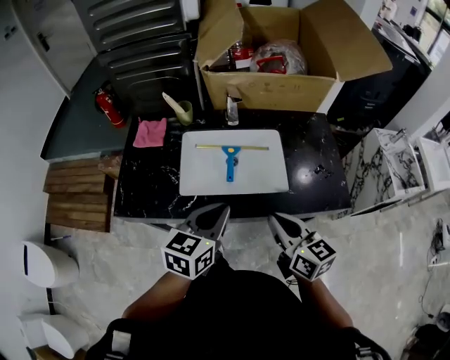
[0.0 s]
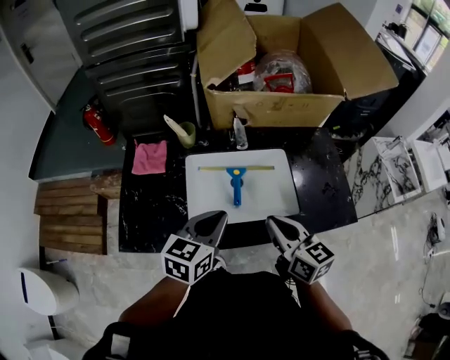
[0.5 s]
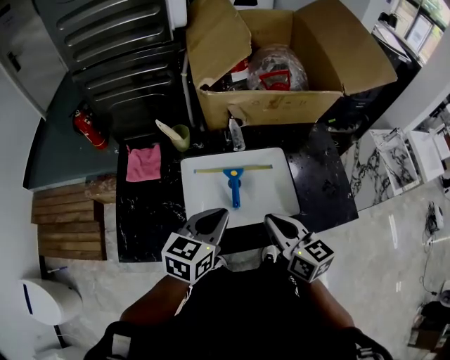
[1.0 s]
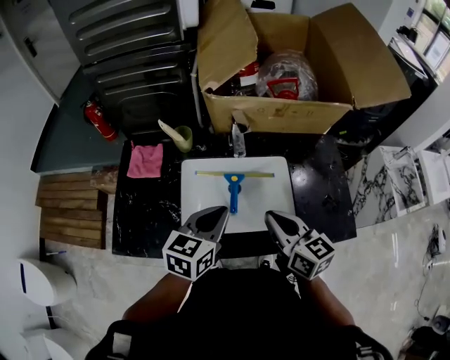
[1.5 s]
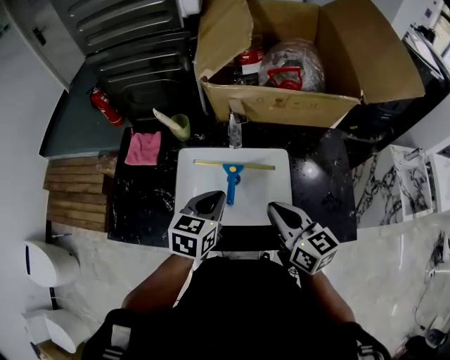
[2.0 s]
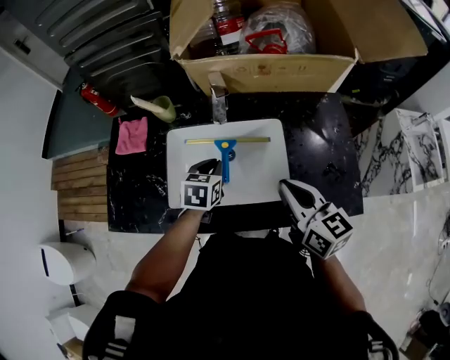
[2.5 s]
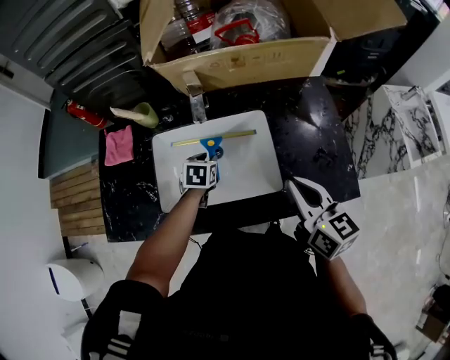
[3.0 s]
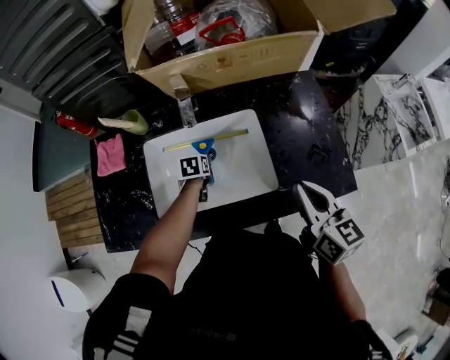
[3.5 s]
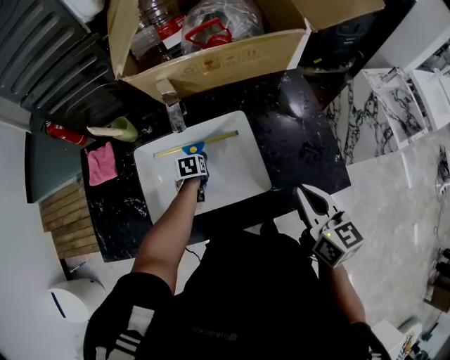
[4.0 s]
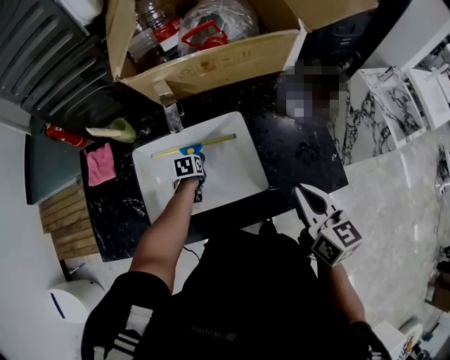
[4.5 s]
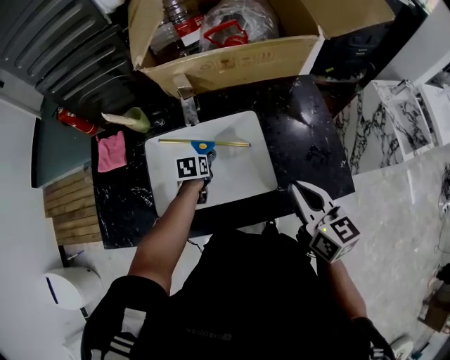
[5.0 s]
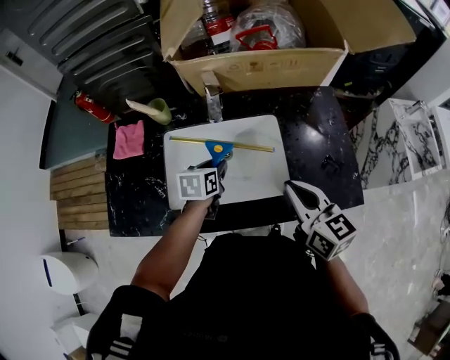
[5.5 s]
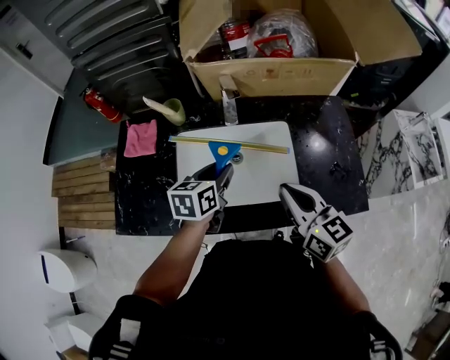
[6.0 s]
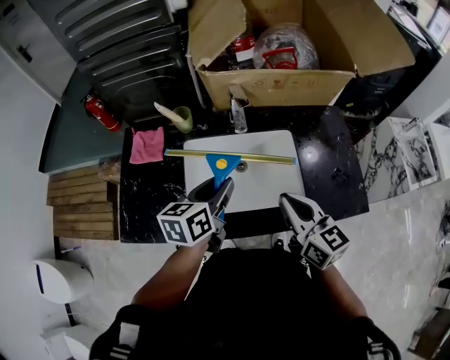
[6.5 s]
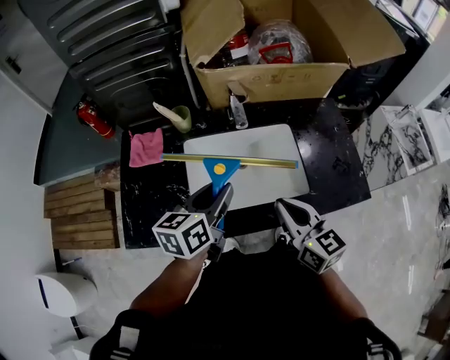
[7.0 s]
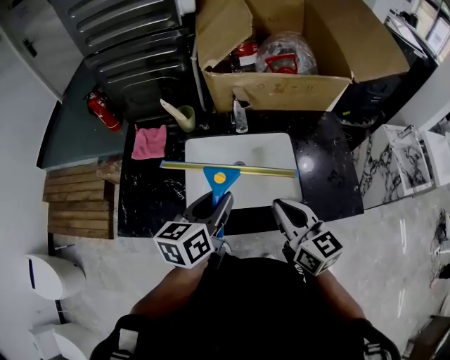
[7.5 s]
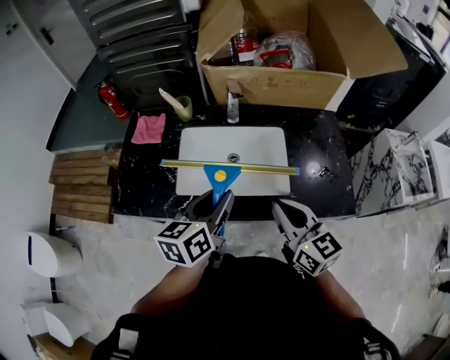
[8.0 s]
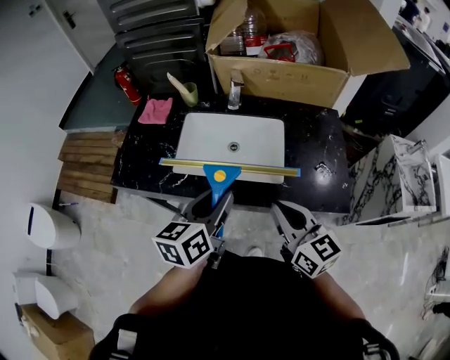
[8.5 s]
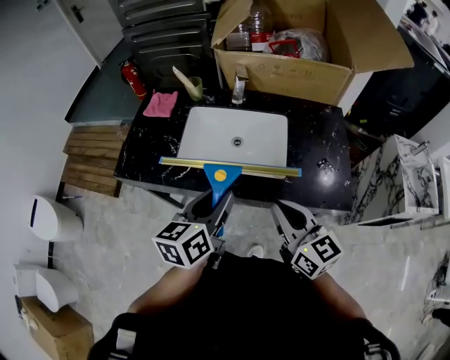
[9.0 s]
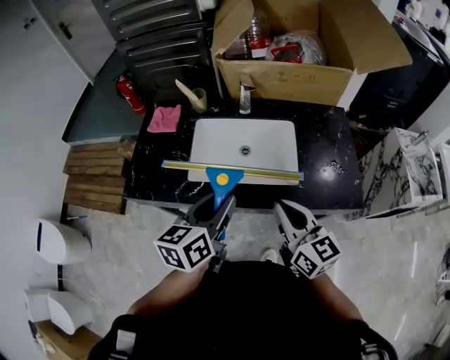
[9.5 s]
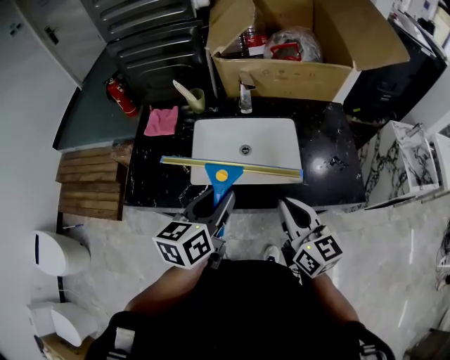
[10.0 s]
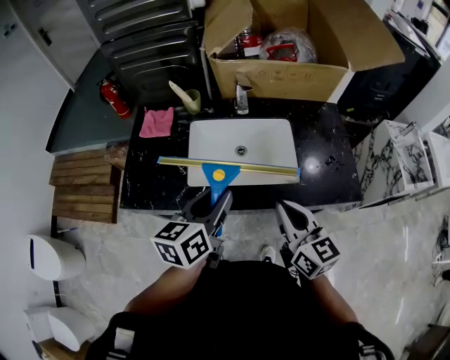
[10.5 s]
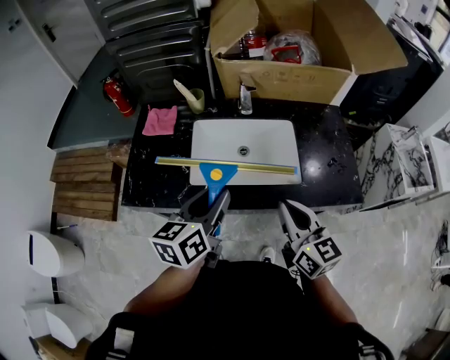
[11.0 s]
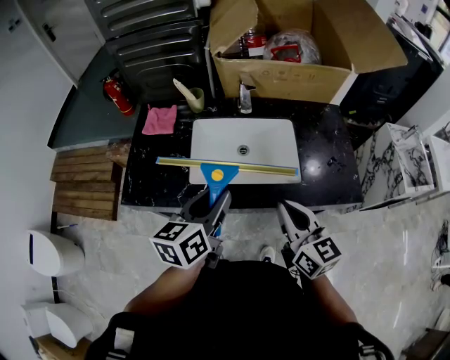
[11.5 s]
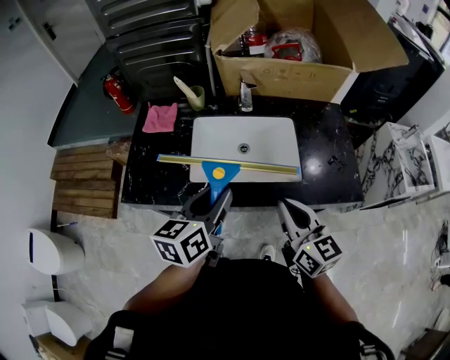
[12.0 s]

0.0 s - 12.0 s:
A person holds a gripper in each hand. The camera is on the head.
0.0 s - 2.0 s: The two grippers go some 15 cm forward.
2.0 s - 4.0 s: The right gripper is displaced to the right by some 15 cm, and changes its angle by approximately 20 degrees. The left gripper heads downward and forward, covering some 30 cm, points its fingers about 30 degrees further downward, and opens its fingers.
4.0 s - 6.0 s: The right gripper goes approximately 15 cm to the left, and changes its angle by roughly 20 degrees; the left gripper heads upward, covering roughly 25 cm, and tilts its fingers about 30 degrees upward.
6.0 s - 8.0 s: The right gripper goes approximately 10 cm backward. Meanwhile the left gripper is displaced backward and upward by approximately 15 cm.
10.0 s - 12.0 s: The grippers stay close to where they were, moving slightly.

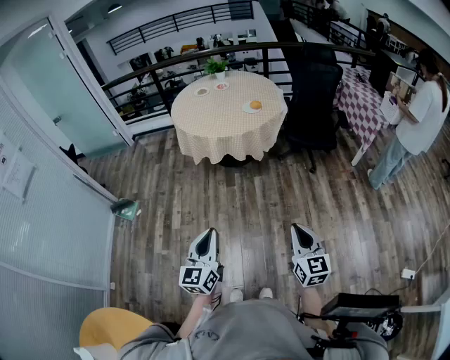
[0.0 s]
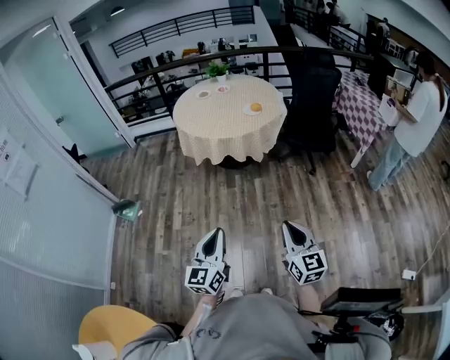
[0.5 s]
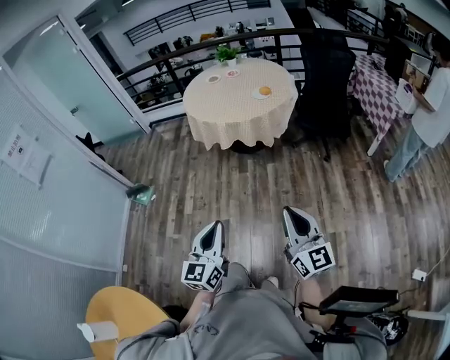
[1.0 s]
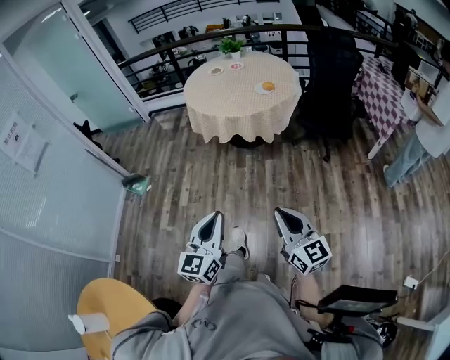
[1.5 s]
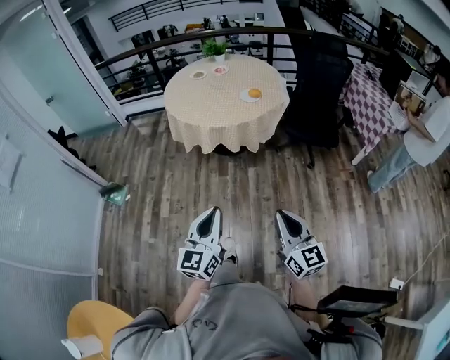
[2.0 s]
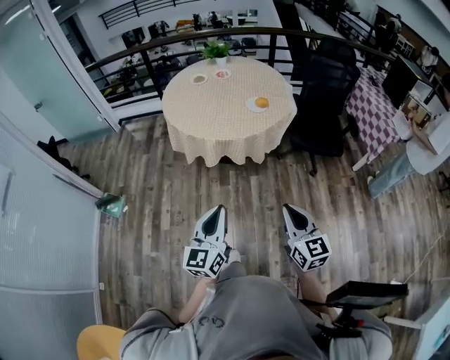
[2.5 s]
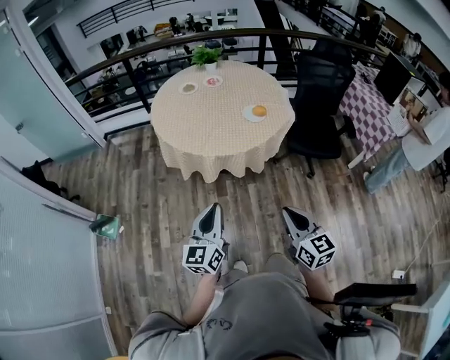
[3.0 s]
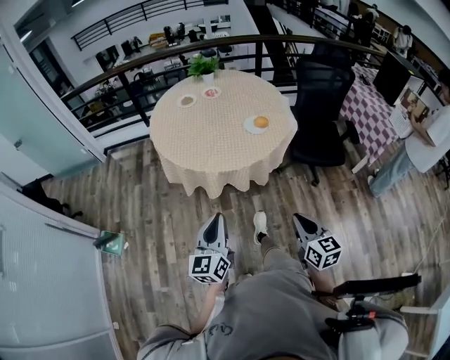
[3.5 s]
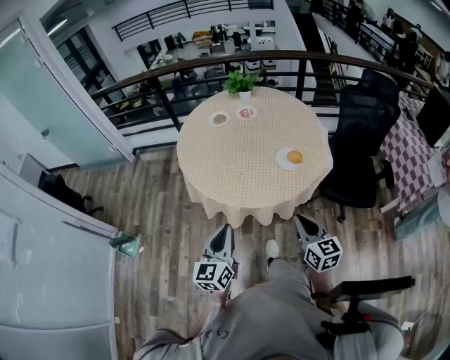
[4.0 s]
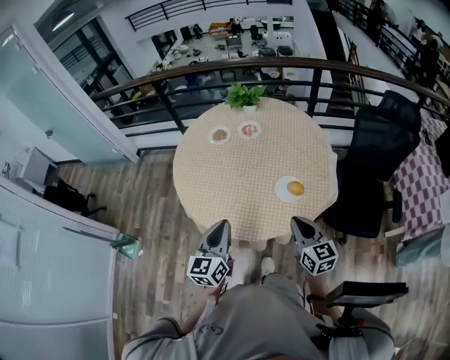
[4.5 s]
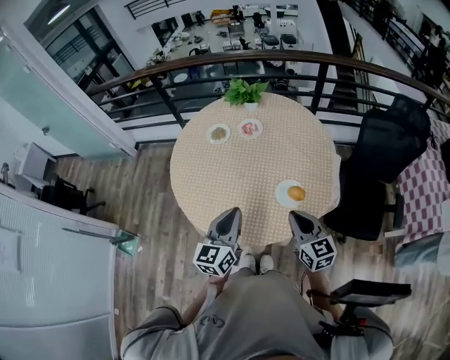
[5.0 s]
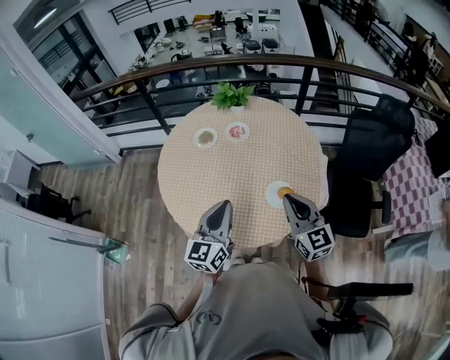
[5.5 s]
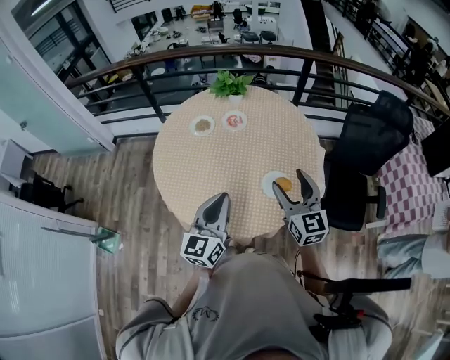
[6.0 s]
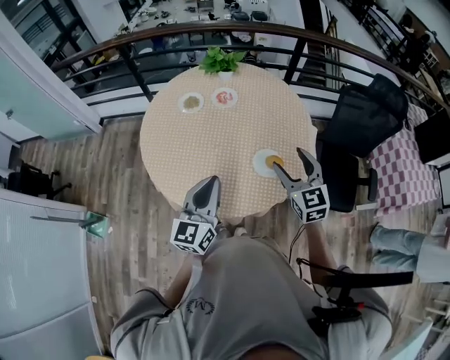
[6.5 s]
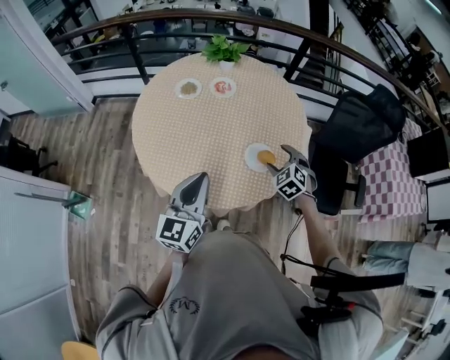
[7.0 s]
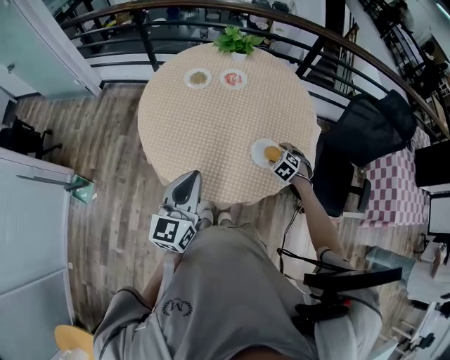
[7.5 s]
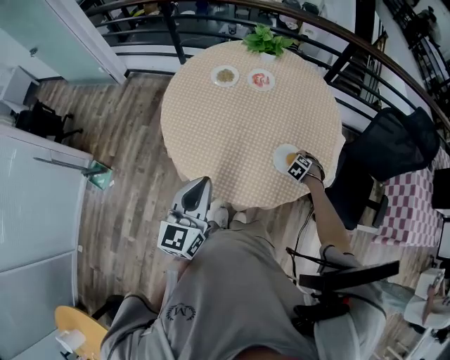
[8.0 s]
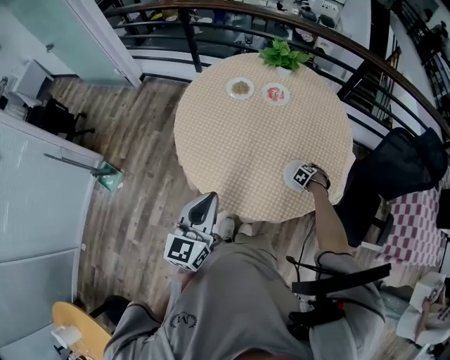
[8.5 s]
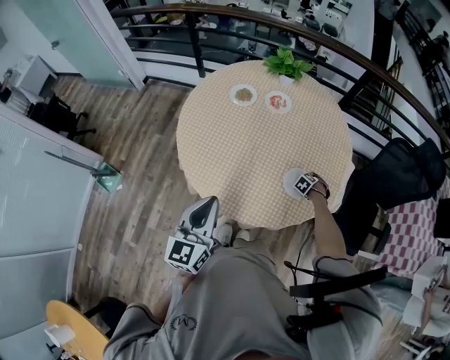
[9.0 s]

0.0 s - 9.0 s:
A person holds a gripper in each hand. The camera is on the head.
0.0 s - 2.0 s: The left gripper travels forward and to the right by approximately 10 cm. Meanwhile the right gripper heads forward, covering roughly 10 cm.
2.0 s - 4.5 s: The two grippers travel together, forward, some 70 cm.
4.5 s - 7.0 s: The left gripper is displaced forward by approximately 5 cm, while the right gripper travels forward and downward by approximately 20 cm, angles its fingers downward, by about 40 degrees, and opens its fingers.
7.0 s - 9.0 s: The left gripper ends up about 5 cm from where it was. Meanwhile the right gripper moves downward, some 30 cm, and tips its fingers downward by some 40 degrees.

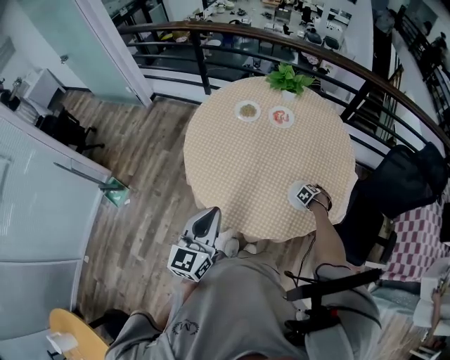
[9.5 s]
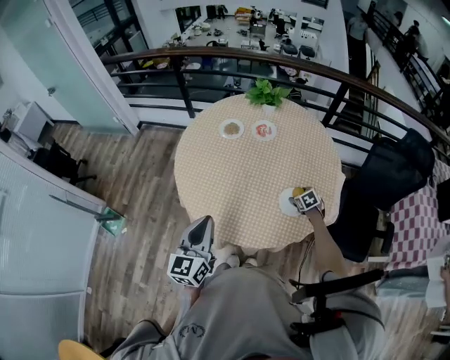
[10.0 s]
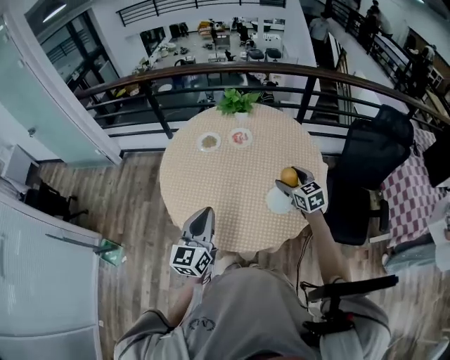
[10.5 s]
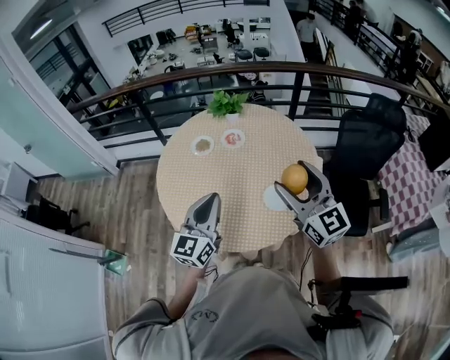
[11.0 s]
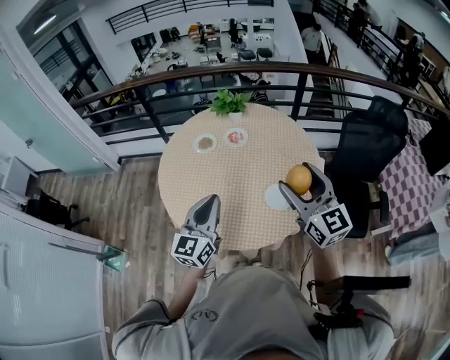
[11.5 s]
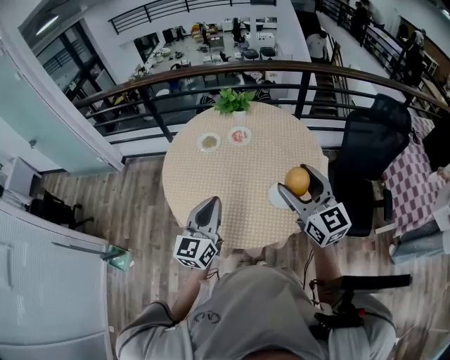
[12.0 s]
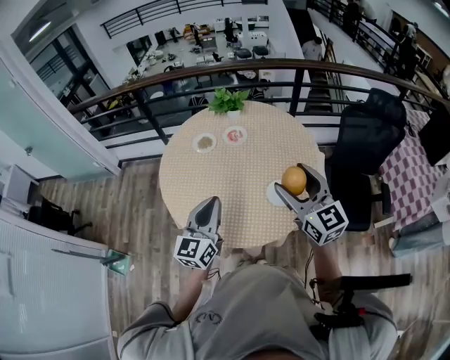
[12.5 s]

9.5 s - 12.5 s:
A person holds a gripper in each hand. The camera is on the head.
9.5 s - 11.0 s: The right gripper is displaced upward by about 60 cm, and points its fingers roughly 90 degrees further upward. Meanwhile the left gripper moves about 15 cm, and changes its angle by approximately 20 degrees.
11.0 s - 12.5 s: There are only small adjustments of the grippers.

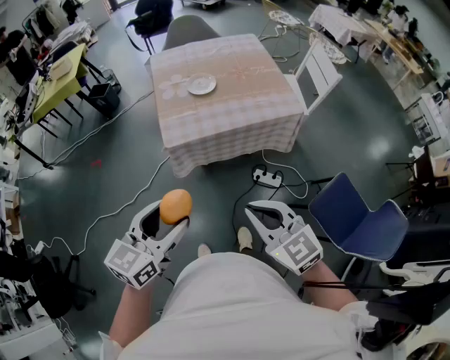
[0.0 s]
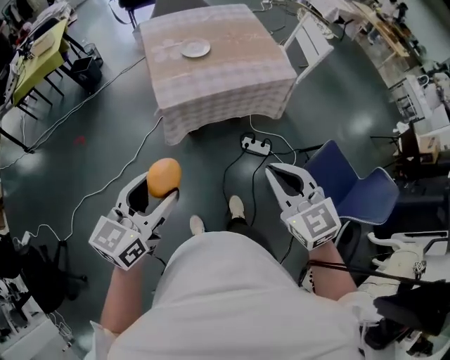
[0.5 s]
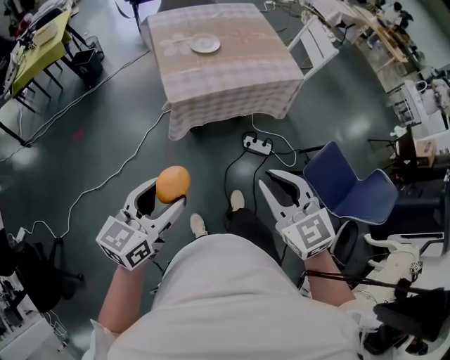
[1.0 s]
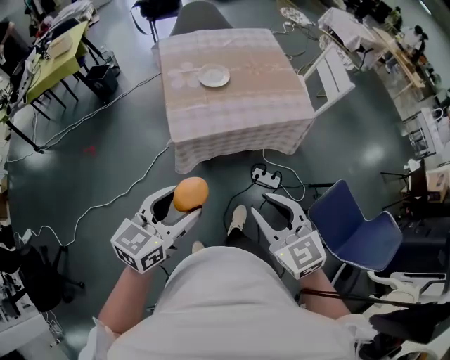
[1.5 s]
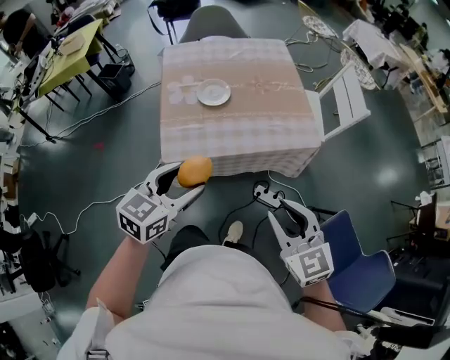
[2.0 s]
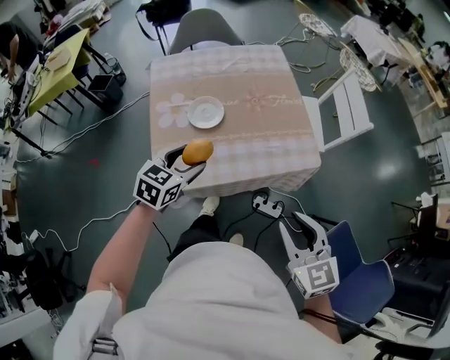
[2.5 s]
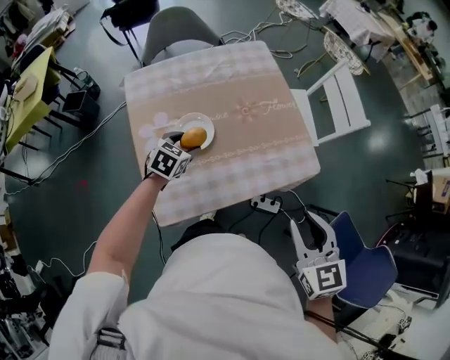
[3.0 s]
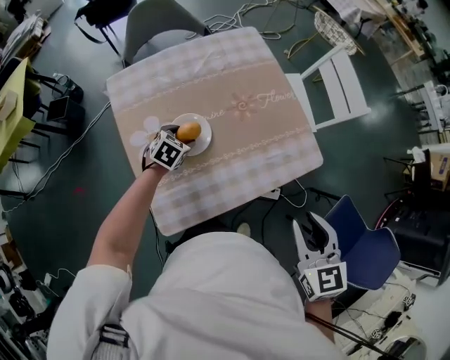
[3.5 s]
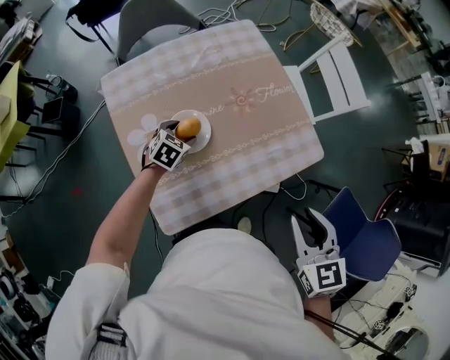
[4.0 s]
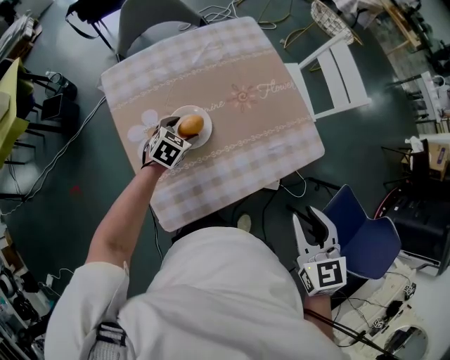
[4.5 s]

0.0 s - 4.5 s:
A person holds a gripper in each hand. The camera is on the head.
0.0 s - 2.0 s: The two grippers go roughly 20 cm forward. The right gripper opens up.
2.0 s - 4.5 s: The right gripper goes approximately 20 cm forward, and rotates roughly 40 degrees, while the left gripper travels forward and downward by roughly 50 cm, and changes its angle by roughly 40 degrees.
